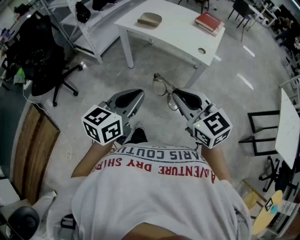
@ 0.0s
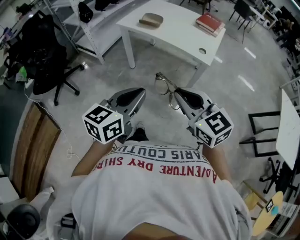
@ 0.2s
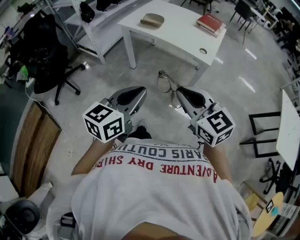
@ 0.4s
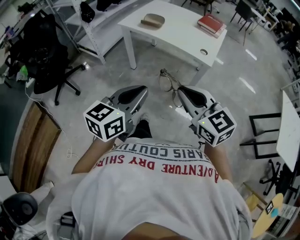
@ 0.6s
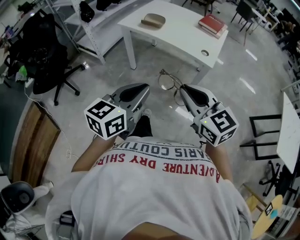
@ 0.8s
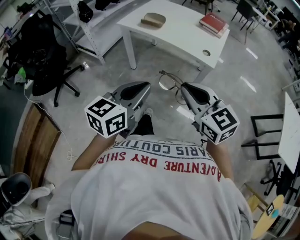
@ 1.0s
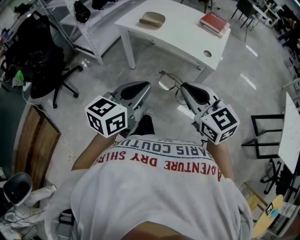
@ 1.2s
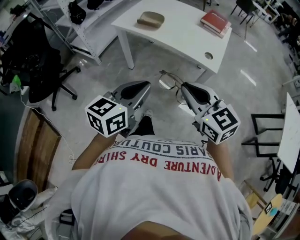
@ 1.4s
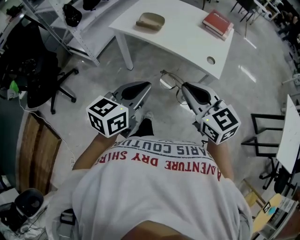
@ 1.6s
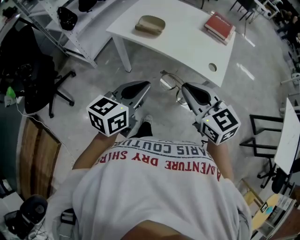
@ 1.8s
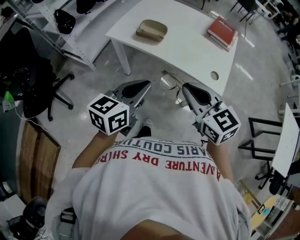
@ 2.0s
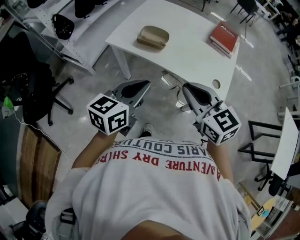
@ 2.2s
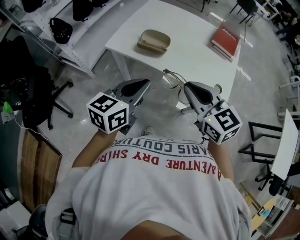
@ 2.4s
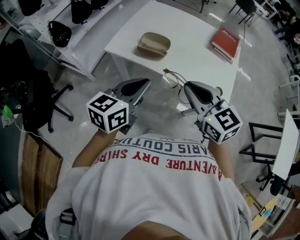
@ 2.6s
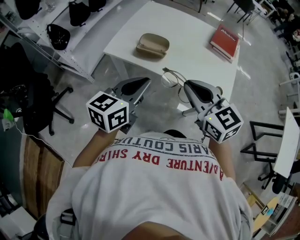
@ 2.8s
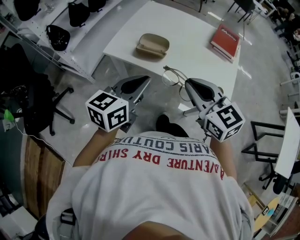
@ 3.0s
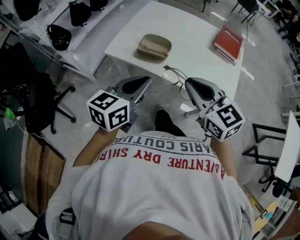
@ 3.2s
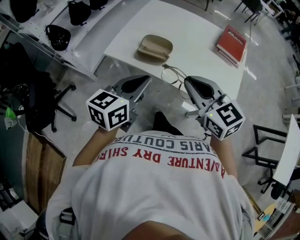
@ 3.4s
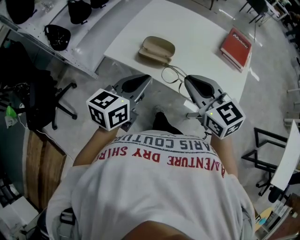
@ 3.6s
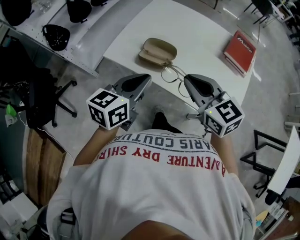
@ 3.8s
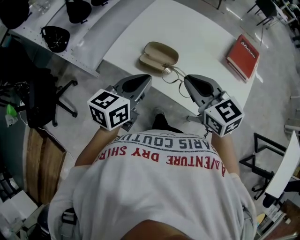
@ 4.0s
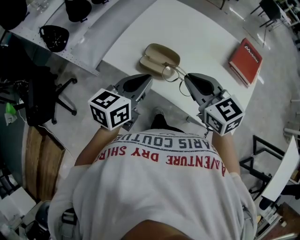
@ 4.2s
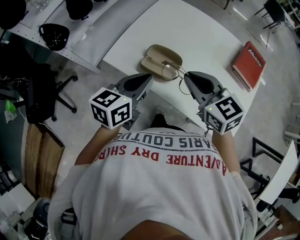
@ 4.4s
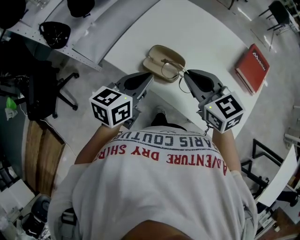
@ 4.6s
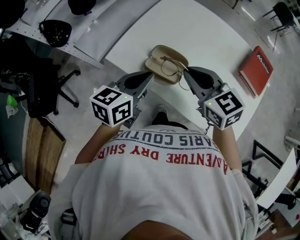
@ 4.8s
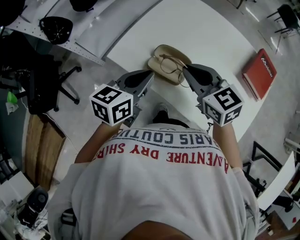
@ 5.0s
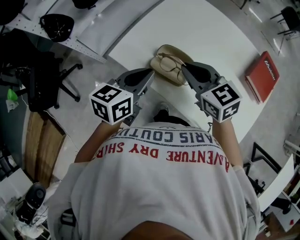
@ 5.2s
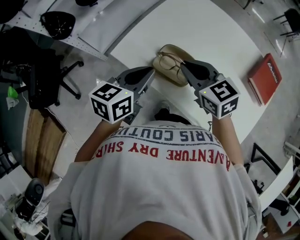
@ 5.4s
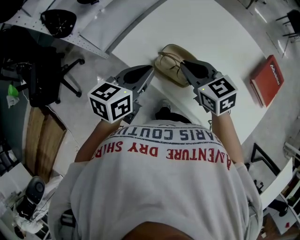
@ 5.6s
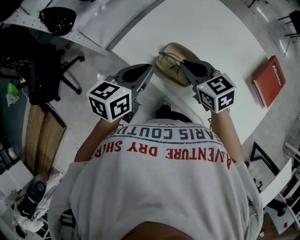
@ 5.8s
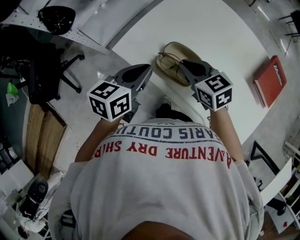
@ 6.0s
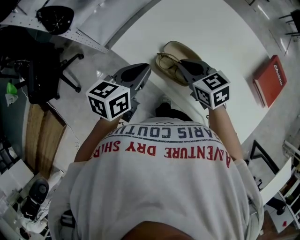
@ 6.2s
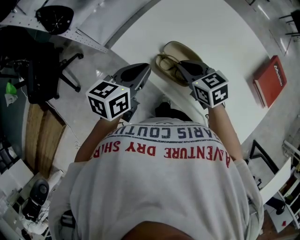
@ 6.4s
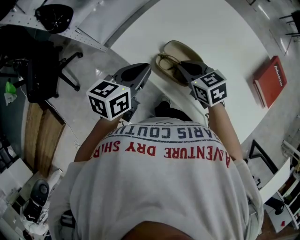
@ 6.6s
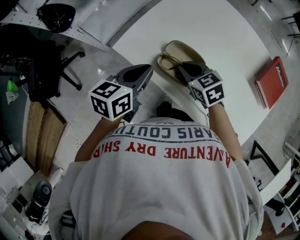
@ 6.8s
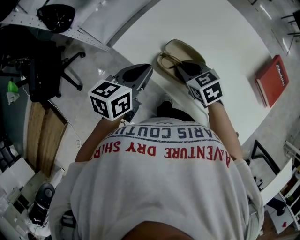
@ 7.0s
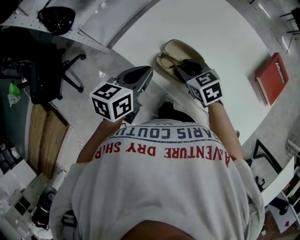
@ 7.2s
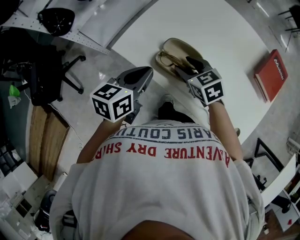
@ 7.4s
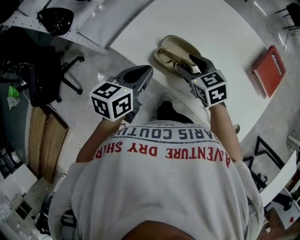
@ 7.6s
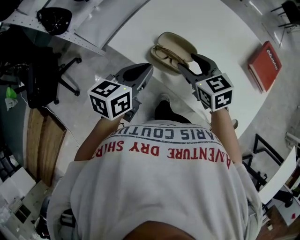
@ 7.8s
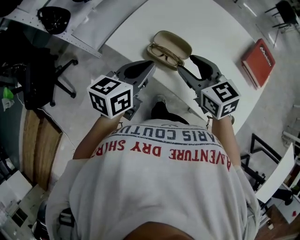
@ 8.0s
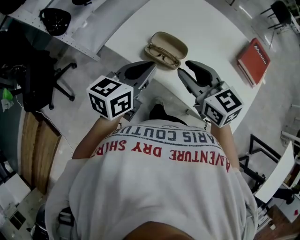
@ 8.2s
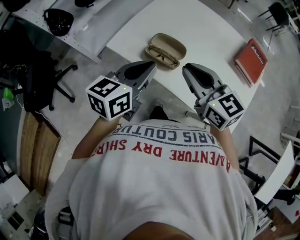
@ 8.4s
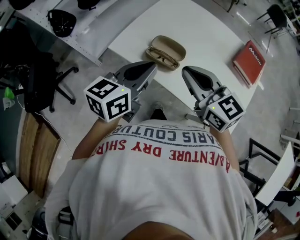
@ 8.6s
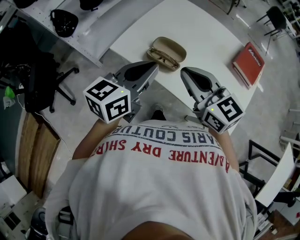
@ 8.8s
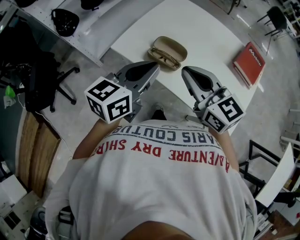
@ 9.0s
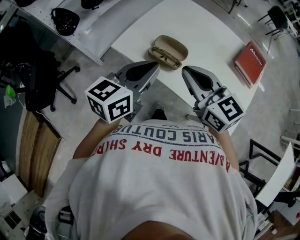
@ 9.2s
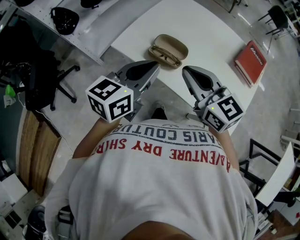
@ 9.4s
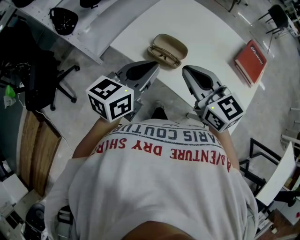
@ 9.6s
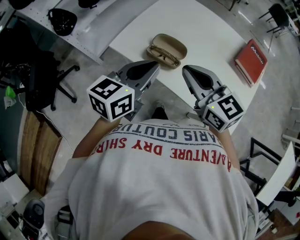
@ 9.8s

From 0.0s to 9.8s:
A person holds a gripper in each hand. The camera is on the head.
From 0.0s to 1.4s: Both grippers travel together forward, approximately 10 cm.
From 1.4s to 2.8s: The grippers both shift forward by about 25 cm.
From 2.8s to 4.2s: Both grippers travel together forward, about 15 cm.
From 4.2s to 5.6s: The right gripper moves forward, downward and to the left, some 15 cm. Meanwhile the left gripper travels forward by roughly 5 cm.
From 5.6s to 7.0s: The right gripper shifts approximately 10 cm downward.
From 7.0s to 8.4s: The right gripper shifts some 20 cm upward and backward, angles its fingers upward, by roughly 30 degrees, and opens, then closes again. Meanwhile the left gripper travels upward, backward and to the right by approximately 15 cm.
From 8.4s to 9.8s: The grippers move only a little.

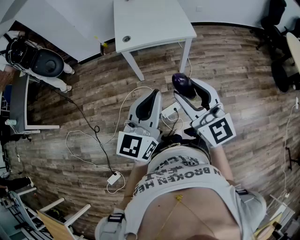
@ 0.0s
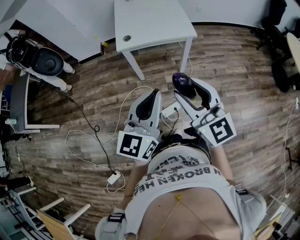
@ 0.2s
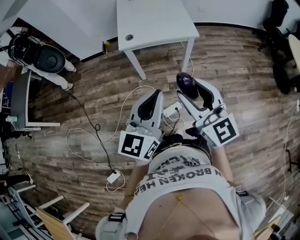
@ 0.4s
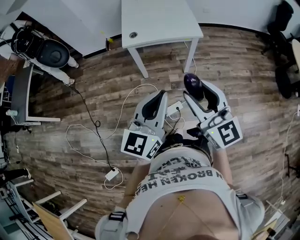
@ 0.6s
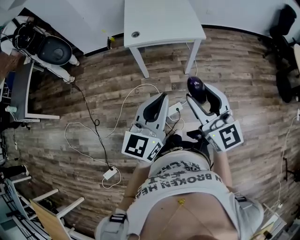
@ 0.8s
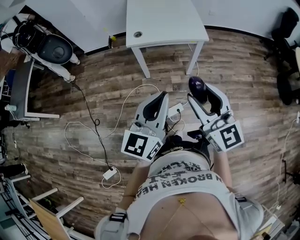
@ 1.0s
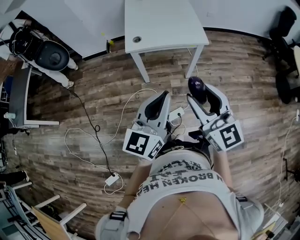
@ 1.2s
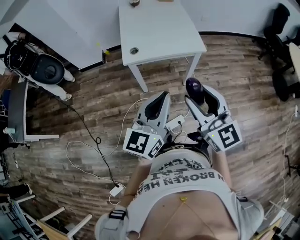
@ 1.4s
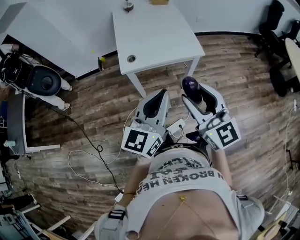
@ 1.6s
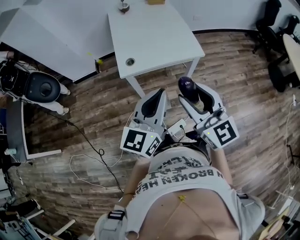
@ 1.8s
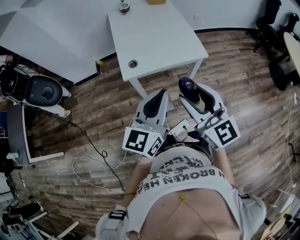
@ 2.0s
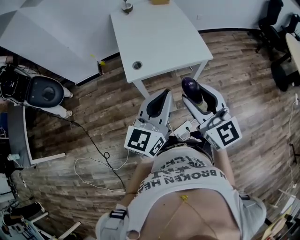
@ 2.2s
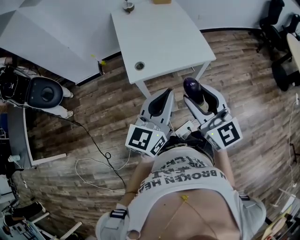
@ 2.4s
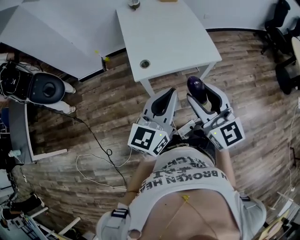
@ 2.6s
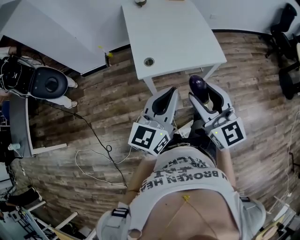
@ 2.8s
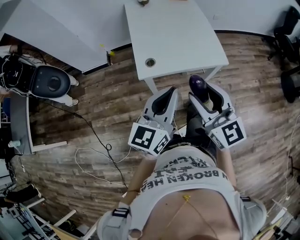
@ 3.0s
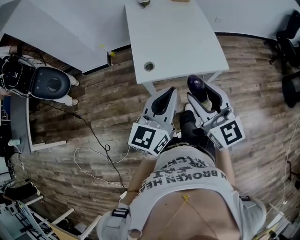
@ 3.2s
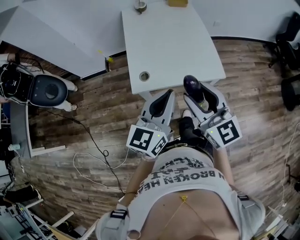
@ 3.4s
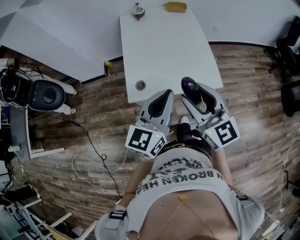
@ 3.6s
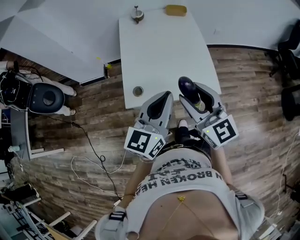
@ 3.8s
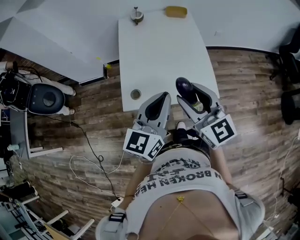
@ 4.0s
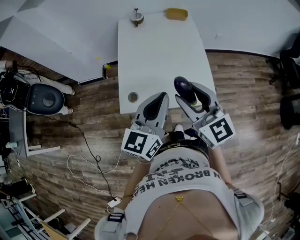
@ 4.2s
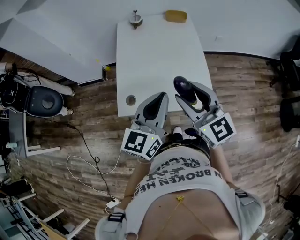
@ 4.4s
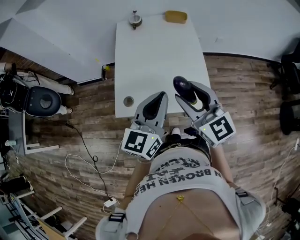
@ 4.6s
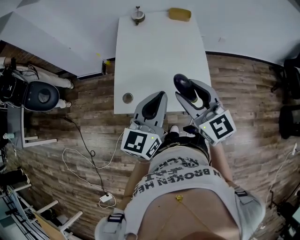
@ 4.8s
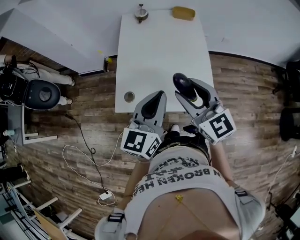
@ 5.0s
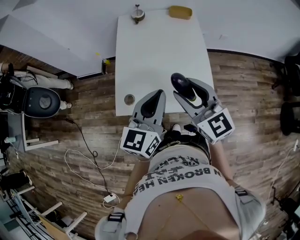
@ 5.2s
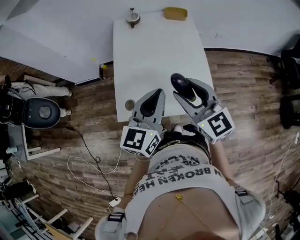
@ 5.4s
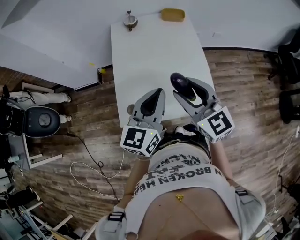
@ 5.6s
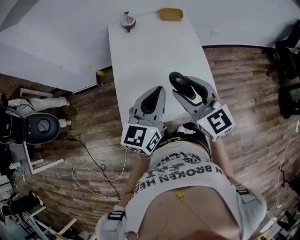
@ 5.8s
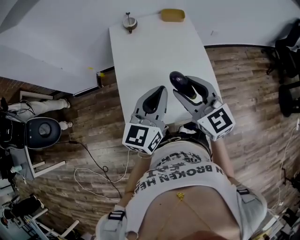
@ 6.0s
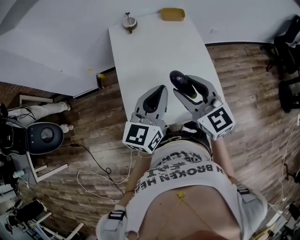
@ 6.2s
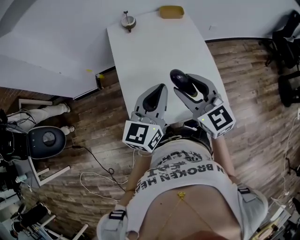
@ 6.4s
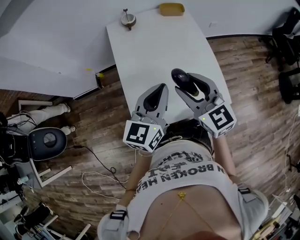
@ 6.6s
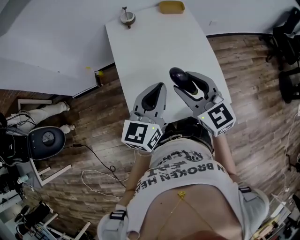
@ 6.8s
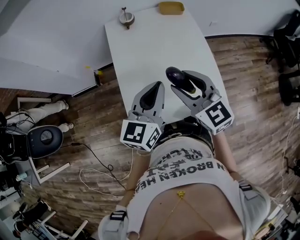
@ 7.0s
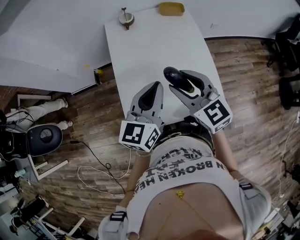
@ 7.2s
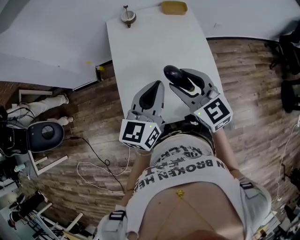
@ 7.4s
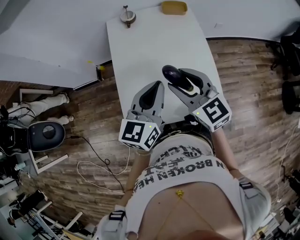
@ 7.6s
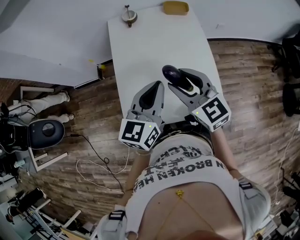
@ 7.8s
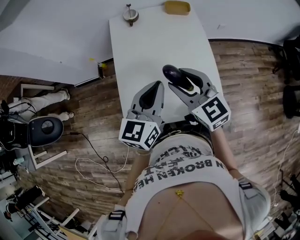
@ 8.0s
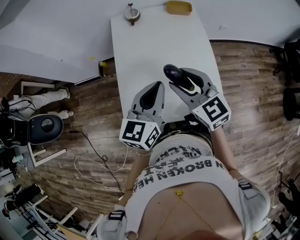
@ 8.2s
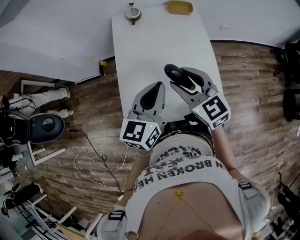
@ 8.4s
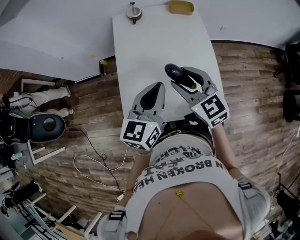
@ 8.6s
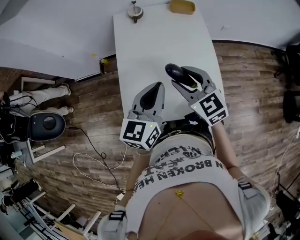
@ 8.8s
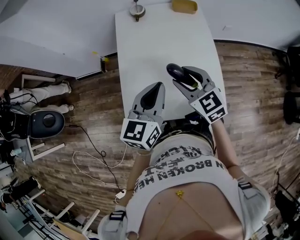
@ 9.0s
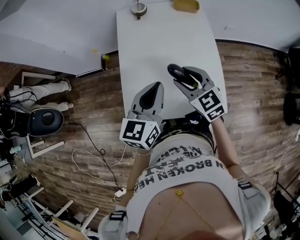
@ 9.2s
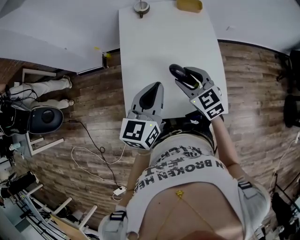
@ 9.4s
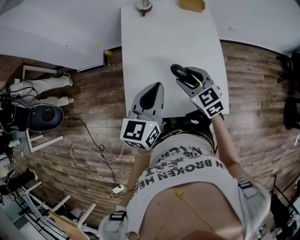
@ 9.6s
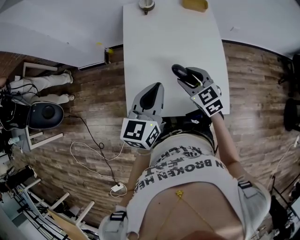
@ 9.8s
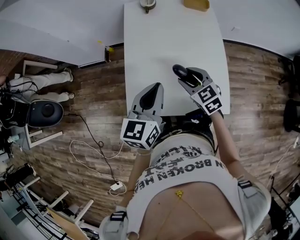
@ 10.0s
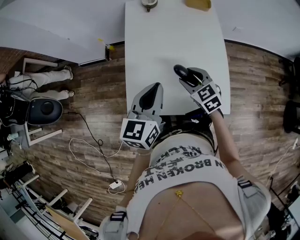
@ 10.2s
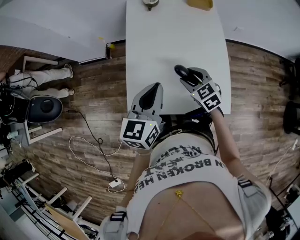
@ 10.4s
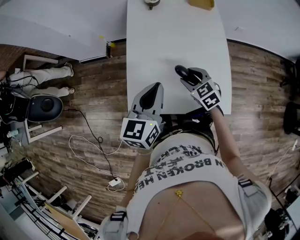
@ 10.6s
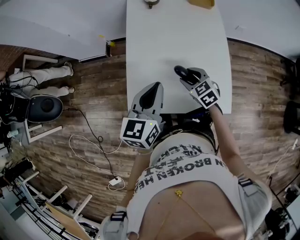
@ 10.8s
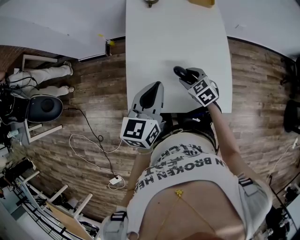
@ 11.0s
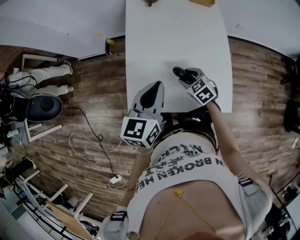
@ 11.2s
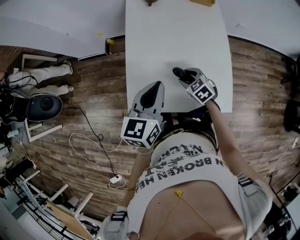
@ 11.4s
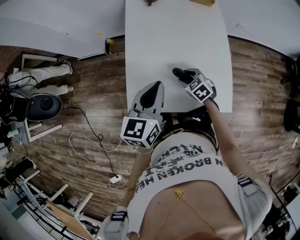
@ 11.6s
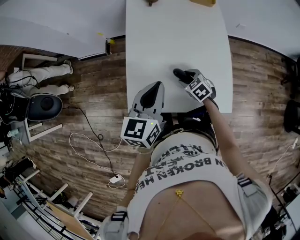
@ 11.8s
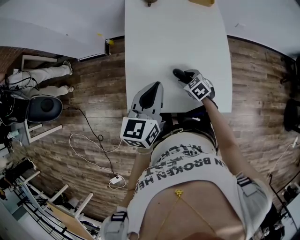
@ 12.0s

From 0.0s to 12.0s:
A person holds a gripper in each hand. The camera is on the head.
From 0.0s to 1.6s: Both grippers travel together forward, approximately 15 cm.
From 1.6s to 3.0s: The two grippers go roughly 15 cm forward and to the left.
From 3.0s to 4.4s: Both grippers travel together forward and to the right, about 25 cm.
From 4.4s to 6.0s: The right gripper travels forward and to the left by about 15 cm. Meanwhile the left gripper is displaced forward by roughly 15 cm.
From 6.0s to 7.6s: Both grippers travel together forward, about 5 cm.
From 7.6s to 9.0s: The right gripper shifts approximately 5 cm downward.
From 9.0s to 10.4s: The right gripper heads downward, covering roughly 10 cm. Meanwhile the left gripper moves roughly 5 cm.
From 10.4s to 12.0s: The right gripper goes about 15 cm downward.

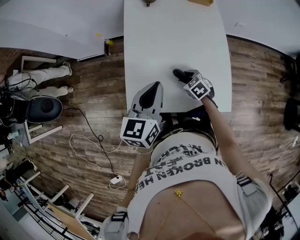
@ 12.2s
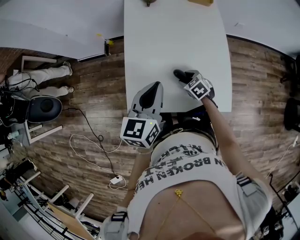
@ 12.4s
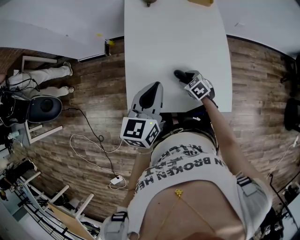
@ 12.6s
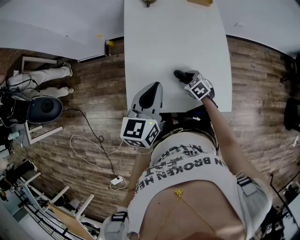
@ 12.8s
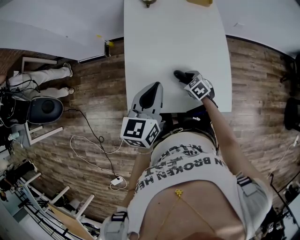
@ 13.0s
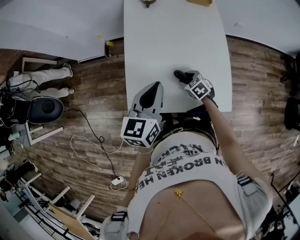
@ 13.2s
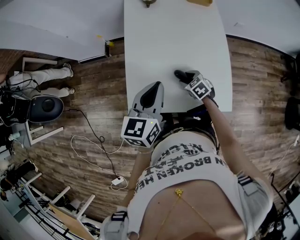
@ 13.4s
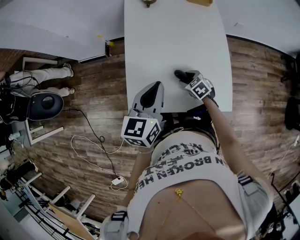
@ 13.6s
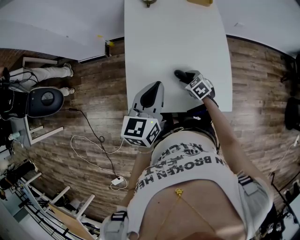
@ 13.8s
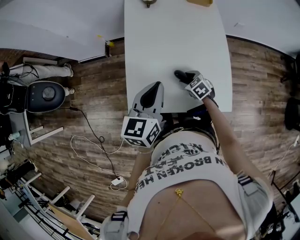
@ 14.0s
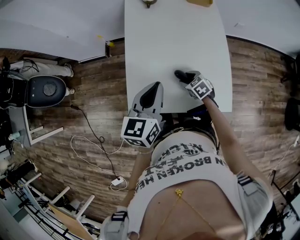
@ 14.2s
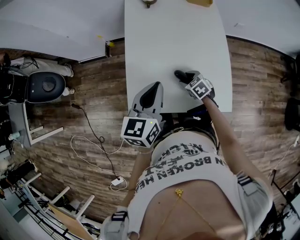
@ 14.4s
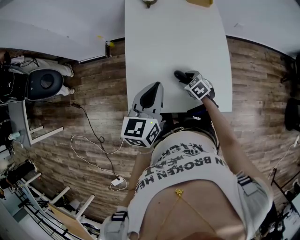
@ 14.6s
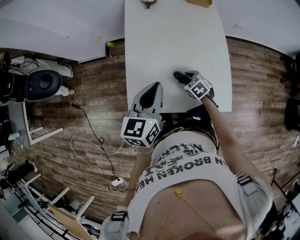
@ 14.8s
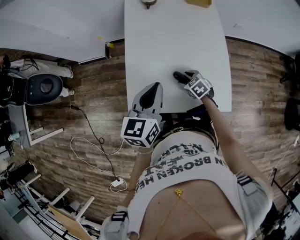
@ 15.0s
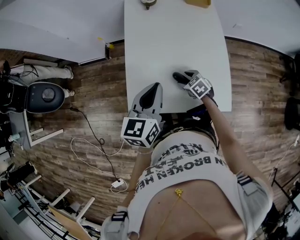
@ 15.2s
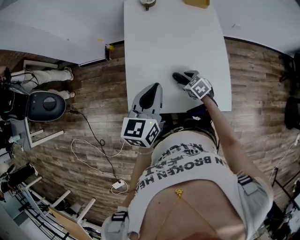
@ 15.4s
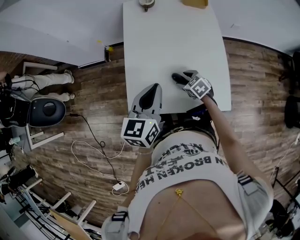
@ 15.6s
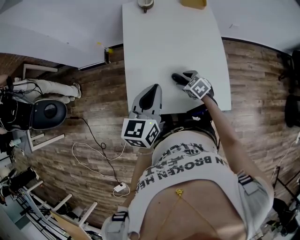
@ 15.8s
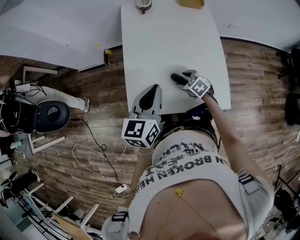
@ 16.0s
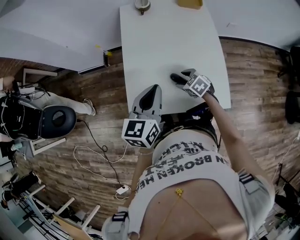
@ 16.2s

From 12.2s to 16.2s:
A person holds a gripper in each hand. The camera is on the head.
From 12.2s to 14.8s: Neither gripper changes place.
From 14.8s to 16.2s: The grippers stay close to where they were, moving slightly.
